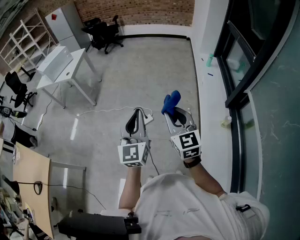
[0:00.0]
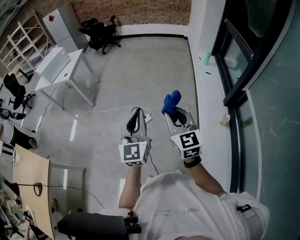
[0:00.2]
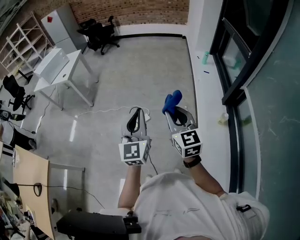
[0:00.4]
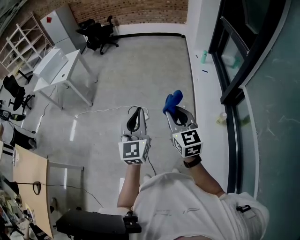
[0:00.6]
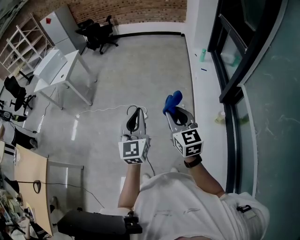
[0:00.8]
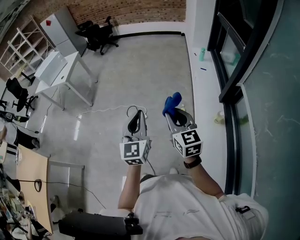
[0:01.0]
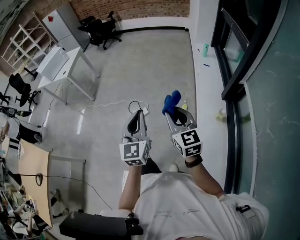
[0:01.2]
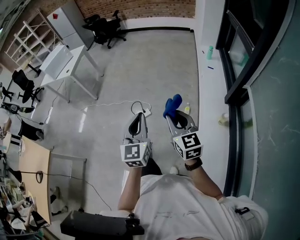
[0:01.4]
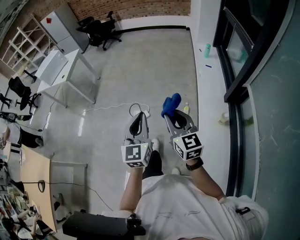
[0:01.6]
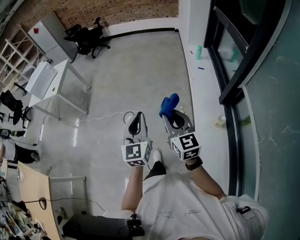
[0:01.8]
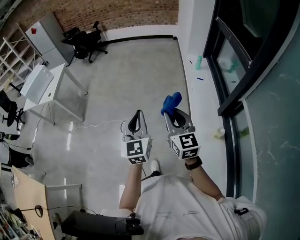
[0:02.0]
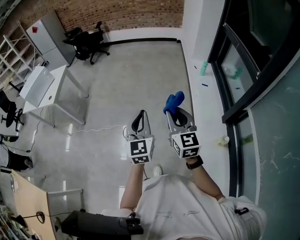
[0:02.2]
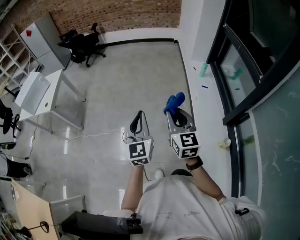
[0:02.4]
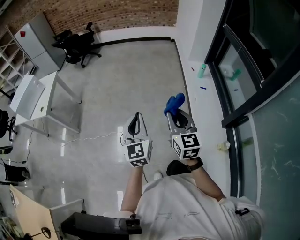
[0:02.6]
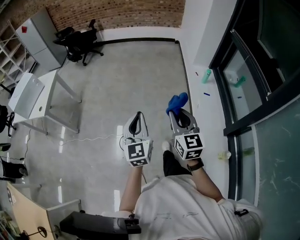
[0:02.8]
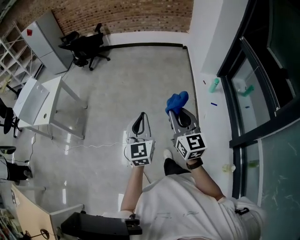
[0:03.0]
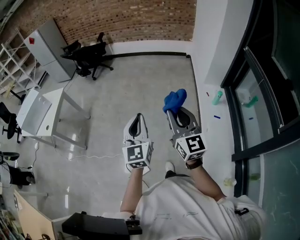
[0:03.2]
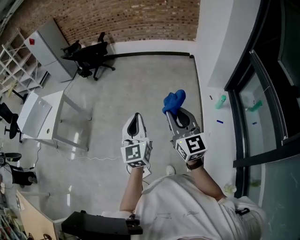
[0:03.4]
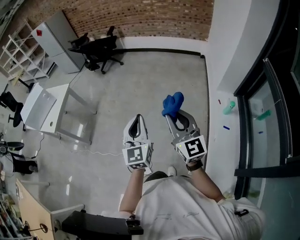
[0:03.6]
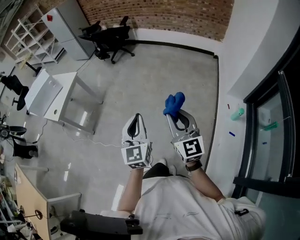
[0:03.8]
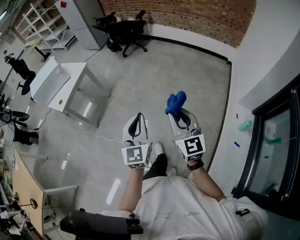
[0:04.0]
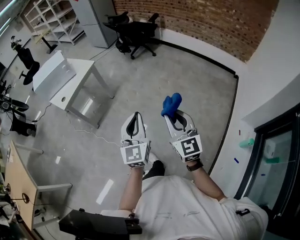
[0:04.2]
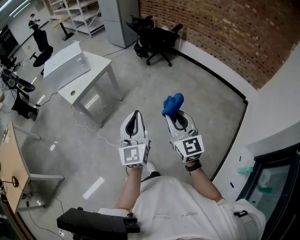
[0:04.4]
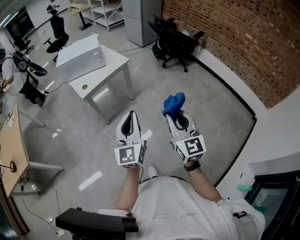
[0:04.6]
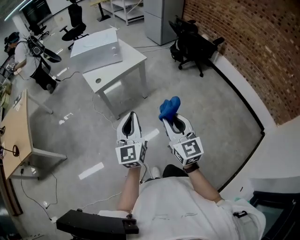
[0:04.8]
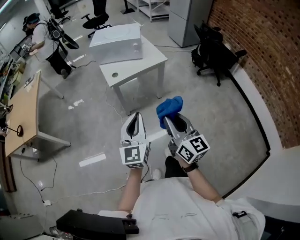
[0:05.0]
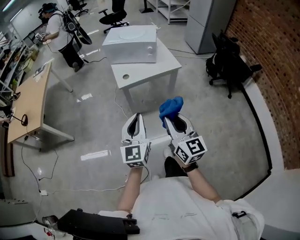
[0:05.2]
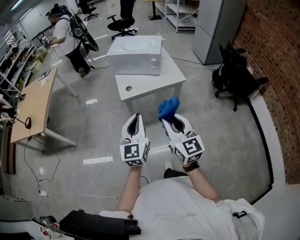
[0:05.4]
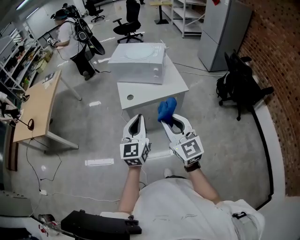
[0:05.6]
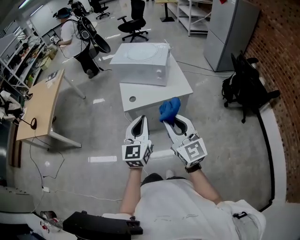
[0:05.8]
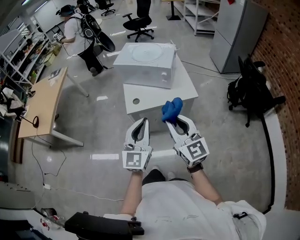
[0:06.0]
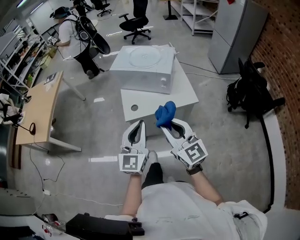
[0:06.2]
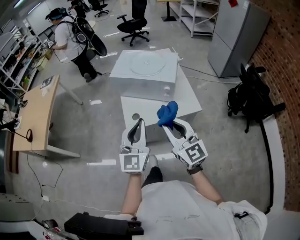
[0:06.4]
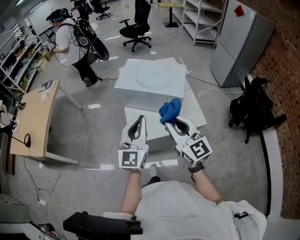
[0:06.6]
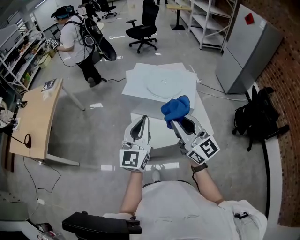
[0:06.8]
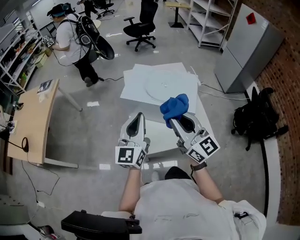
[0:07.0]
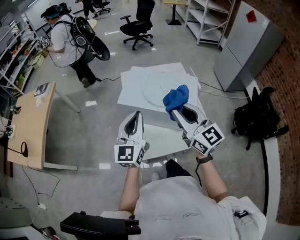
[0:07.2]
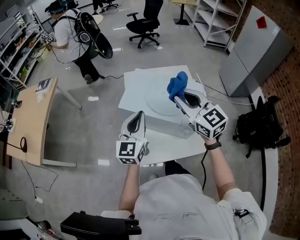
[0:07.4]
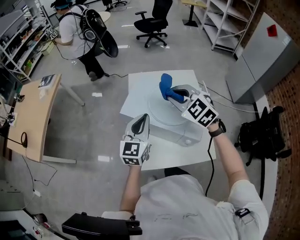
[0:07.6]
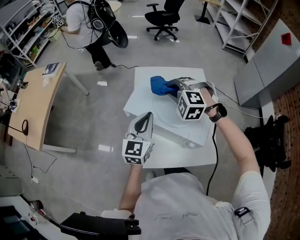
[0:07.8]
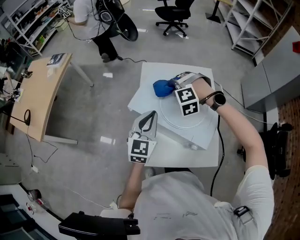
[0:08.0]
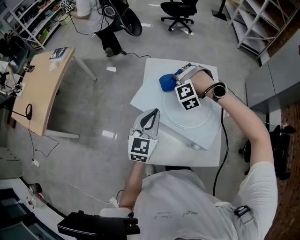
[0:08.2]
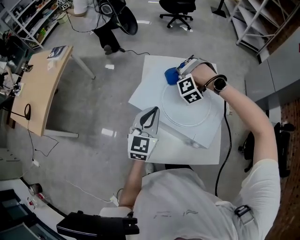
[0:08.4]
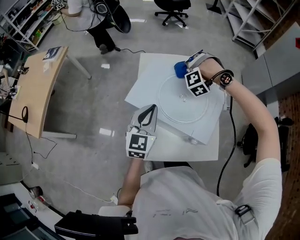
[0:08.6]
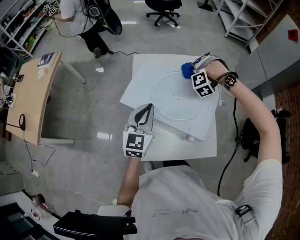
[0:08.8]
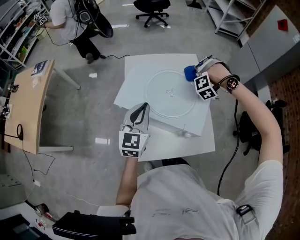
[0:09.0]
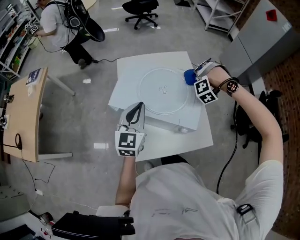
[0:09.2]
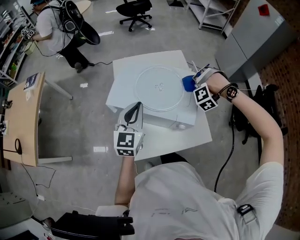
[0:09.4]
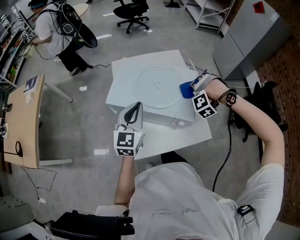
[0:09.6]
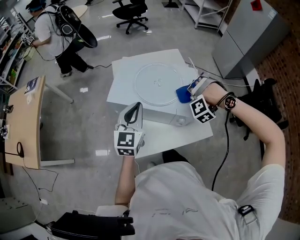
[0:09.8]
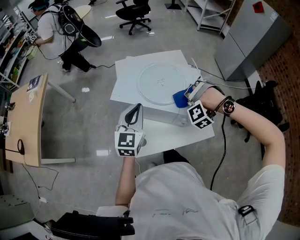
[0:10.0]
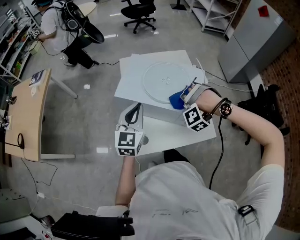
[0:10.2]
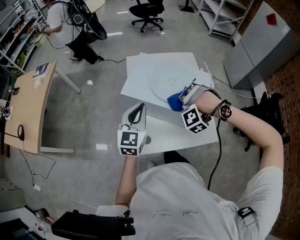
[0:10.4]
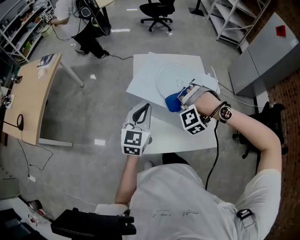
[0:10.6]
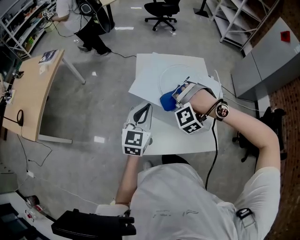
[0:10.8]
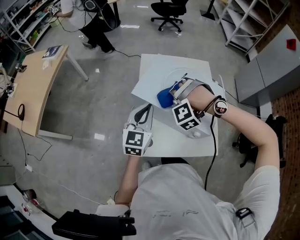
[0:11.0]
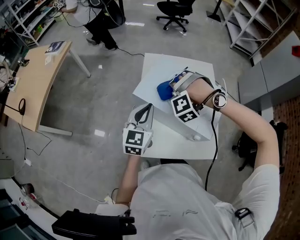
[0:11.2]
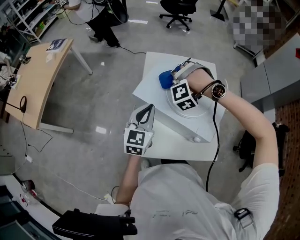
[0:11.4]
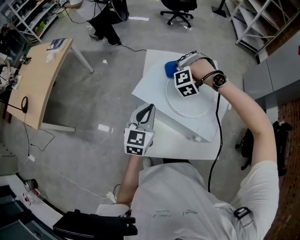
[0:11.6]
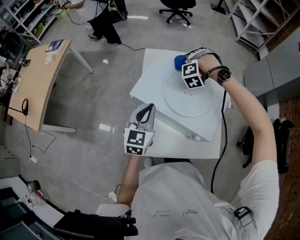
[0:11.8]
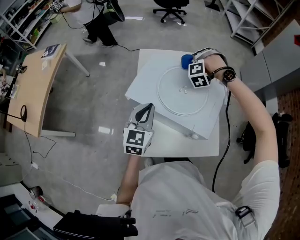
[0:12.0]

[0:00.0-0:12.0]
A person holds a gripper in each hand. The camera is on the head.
0:00.0 to 0:01.6: The left gripper shifts by about 15 cm.
0:01.6 to 0:03.0: The left gripper shifts by some 50 cm.
0:03.0 to 0:04.4: The left gripper shifts by roughly 40 cm, and rotates roughly 40 degrees.
0:04.4 to 0:06.0: The left gripper changes place by roughly 40 cm, and changes its angle by roughly 40 degrees.
0:06.0 to 0:07.6: The left gripper ends up about 50 cm from where it was.
0:09.0 to 0:10.4: The left gripper ends up some 5 cm from where it was.
0:10.4 to 0:12.0: The left gripper shifts by about 5 cm.

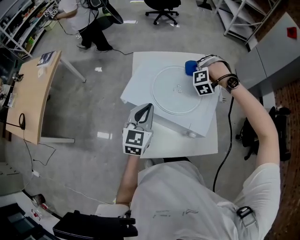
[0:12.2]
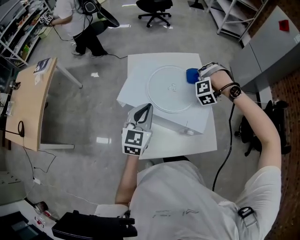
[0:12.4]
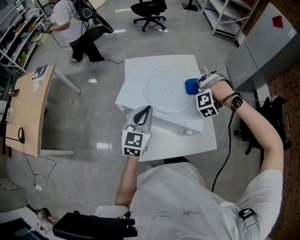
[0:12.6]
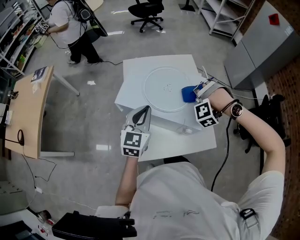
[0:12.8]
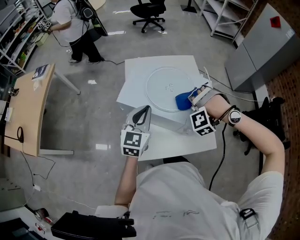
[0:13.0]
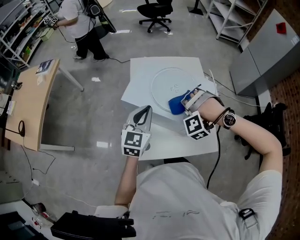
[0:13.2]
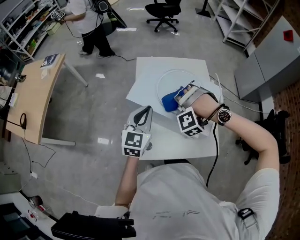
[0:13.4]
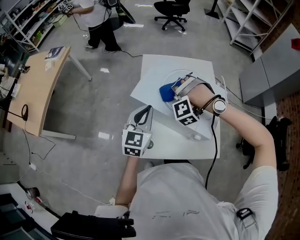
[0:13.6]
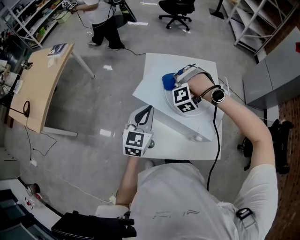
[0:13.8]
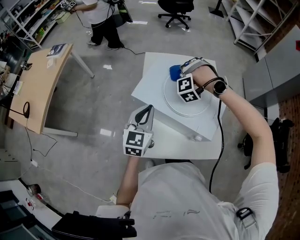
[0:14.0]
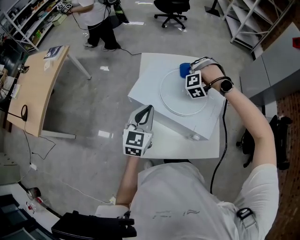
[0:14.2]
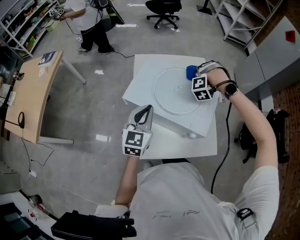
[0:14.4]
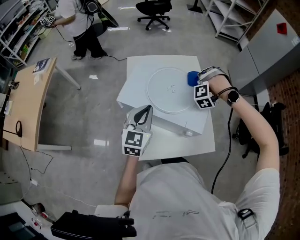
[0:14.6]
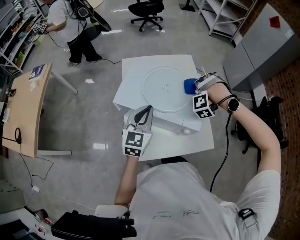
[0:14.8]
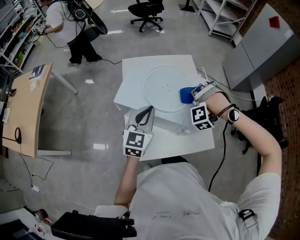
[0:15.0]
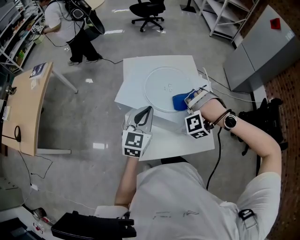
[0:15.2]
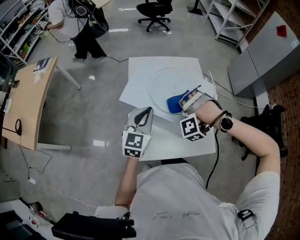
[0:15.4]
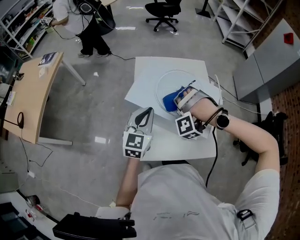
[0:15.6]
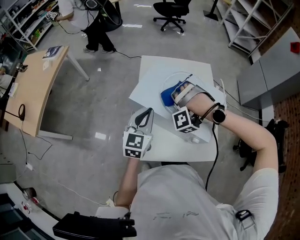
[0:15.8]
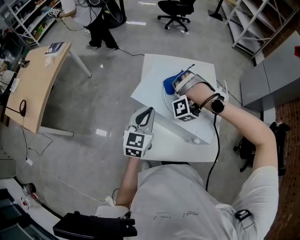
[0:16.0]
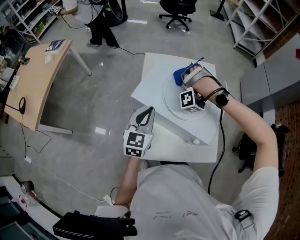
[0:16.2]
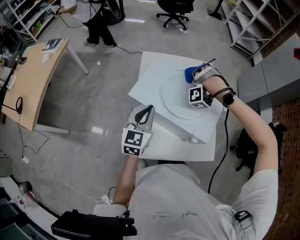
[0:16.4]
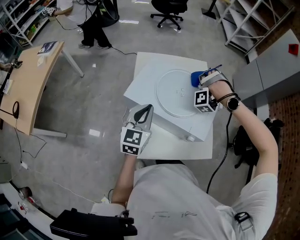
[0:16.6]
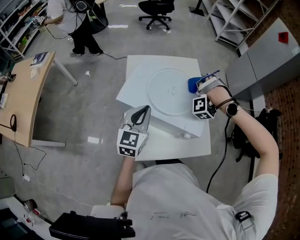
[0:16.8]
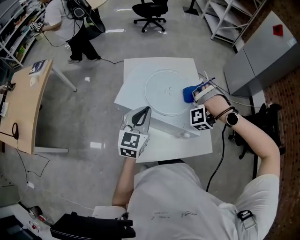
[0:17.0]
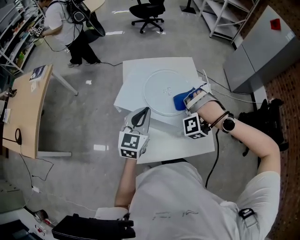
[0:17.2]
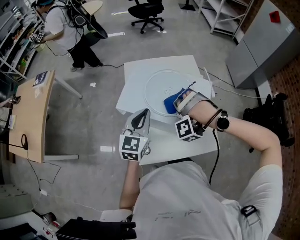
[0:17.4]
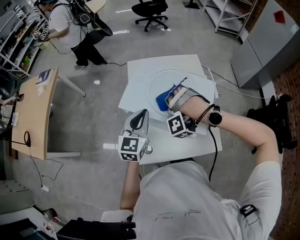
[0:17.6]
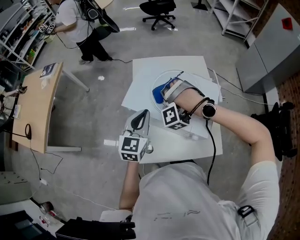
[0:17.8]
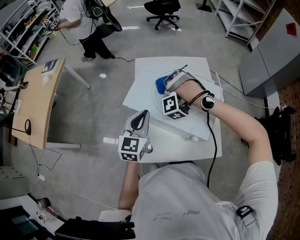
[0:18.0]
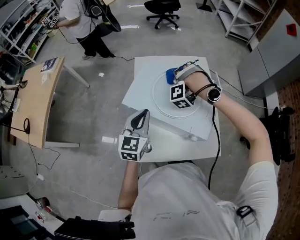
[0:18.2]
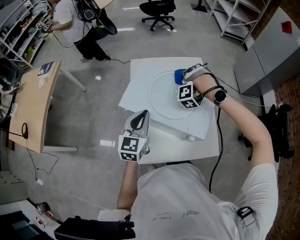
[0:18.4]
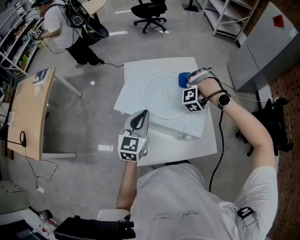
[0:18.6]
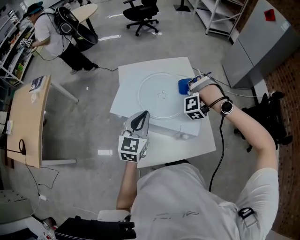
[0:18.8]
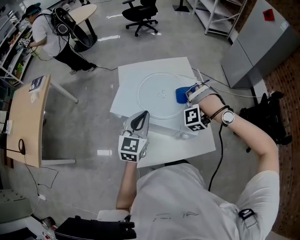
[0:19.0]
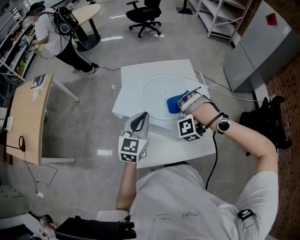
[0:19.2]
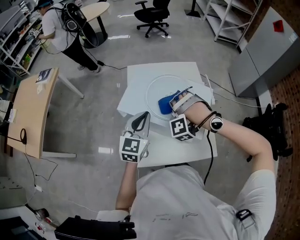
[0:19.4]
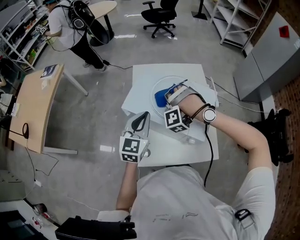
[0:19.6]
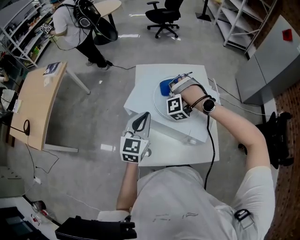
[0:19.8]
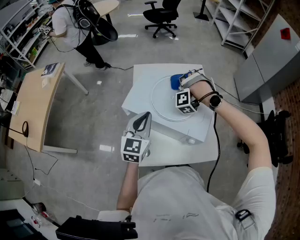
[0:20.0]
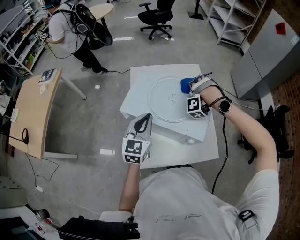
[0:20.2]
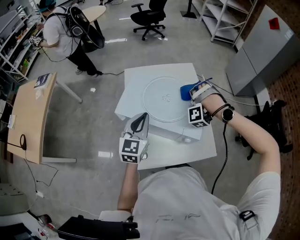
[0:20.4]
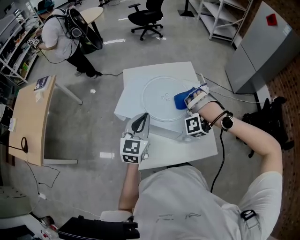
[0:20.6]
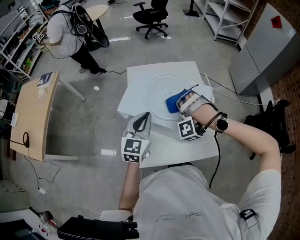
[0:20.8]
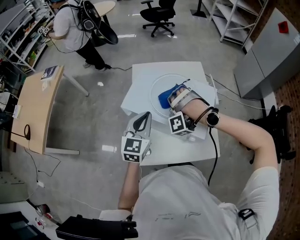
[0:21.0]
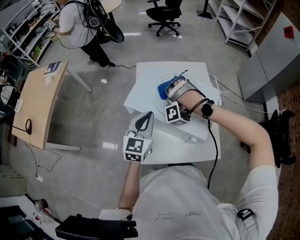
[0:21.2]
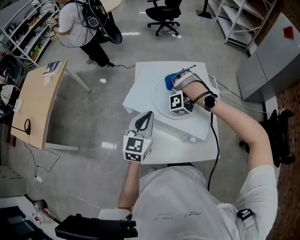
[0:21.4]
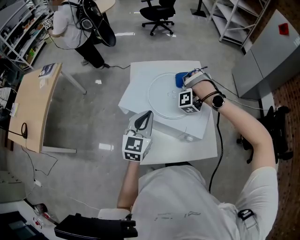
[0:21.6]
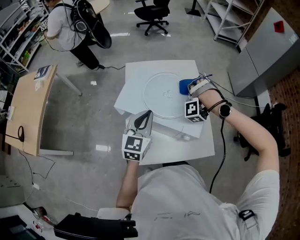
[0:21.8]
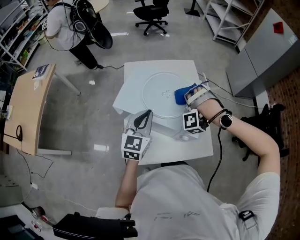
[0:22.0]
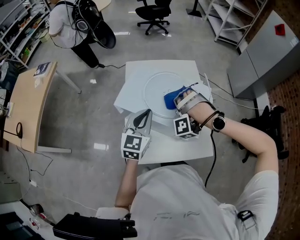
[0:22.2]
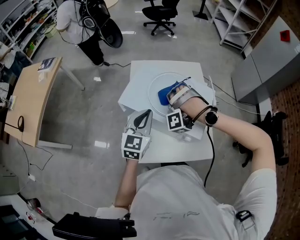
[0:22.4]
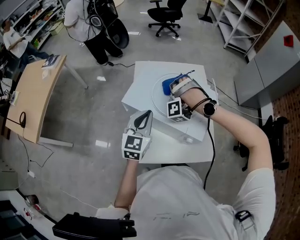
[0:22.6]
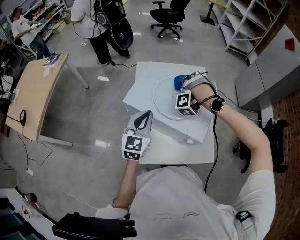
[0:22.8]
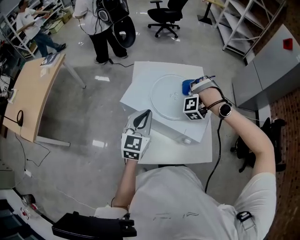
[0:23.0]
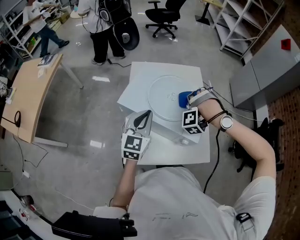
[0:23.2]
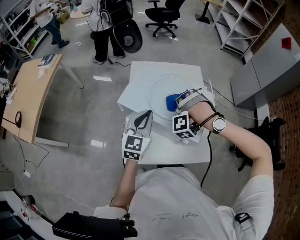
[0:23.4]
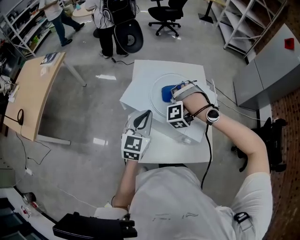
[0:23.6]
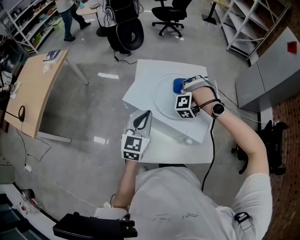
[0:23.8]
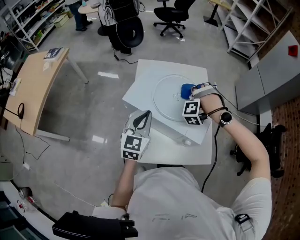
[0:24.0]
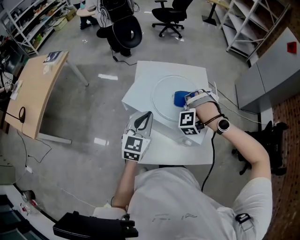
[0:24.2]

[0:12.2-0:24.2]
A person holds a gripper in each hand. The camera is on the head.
0:13.8 to 0:15.2: The left gripper ends up some 5 cm from where it was.
0:15.2 to 0:16.6: The left gripper shifts by some 5 cm.

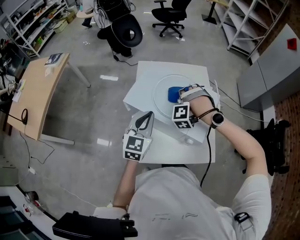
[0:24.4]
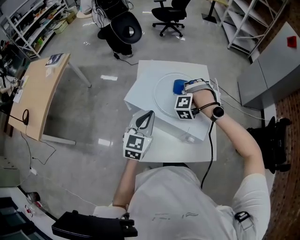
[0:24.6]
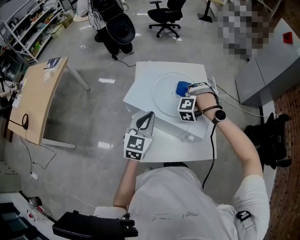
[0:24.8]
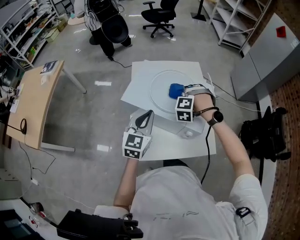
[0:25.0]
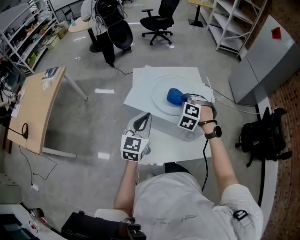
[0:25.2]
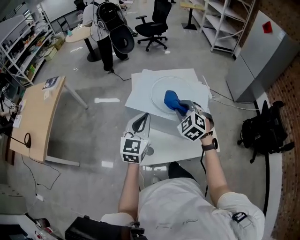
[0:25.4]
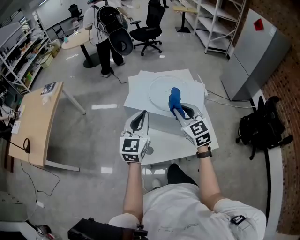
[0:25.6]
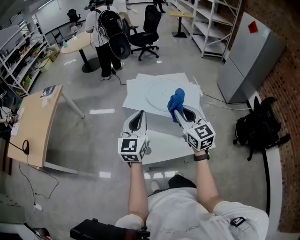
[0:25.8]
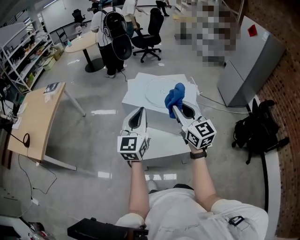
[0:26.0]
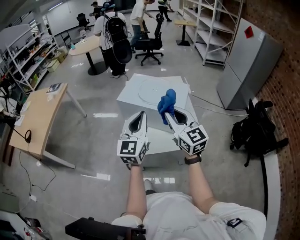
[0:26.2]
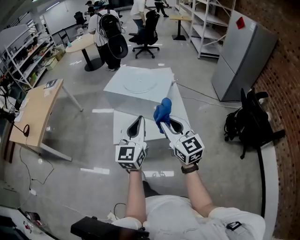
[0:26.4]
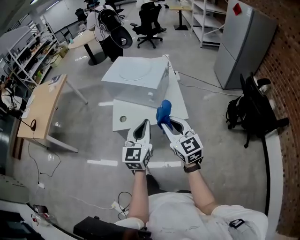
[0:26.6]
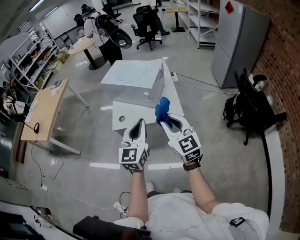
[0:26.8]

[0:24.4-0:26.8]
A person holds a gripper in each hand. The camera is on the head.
0:24.4 to 0:25.6: The left gripper heads upward, covering about 10 cm.
0:25.6 to 0:26.8: The left gripper ends up some 40 cm from where it was.
